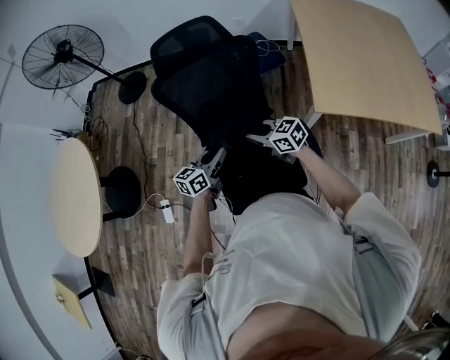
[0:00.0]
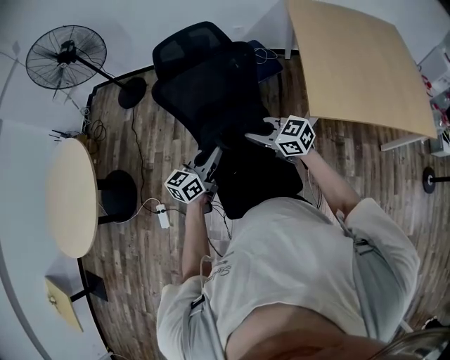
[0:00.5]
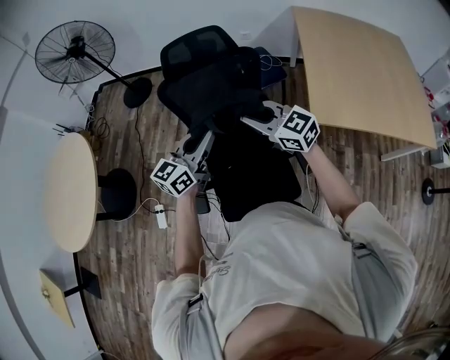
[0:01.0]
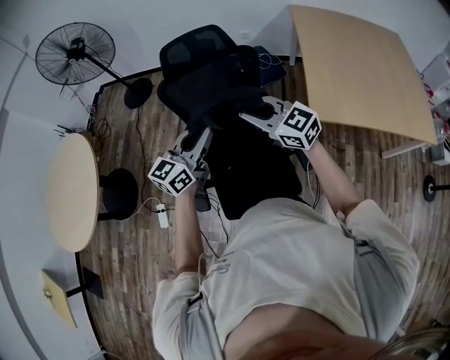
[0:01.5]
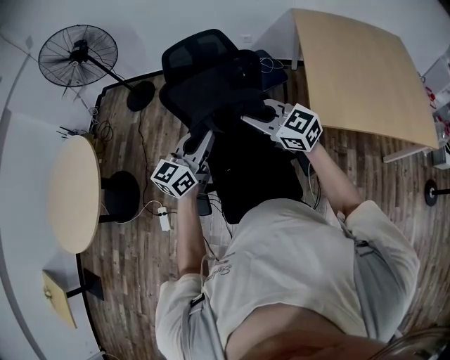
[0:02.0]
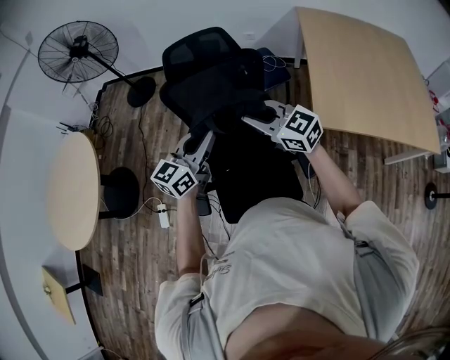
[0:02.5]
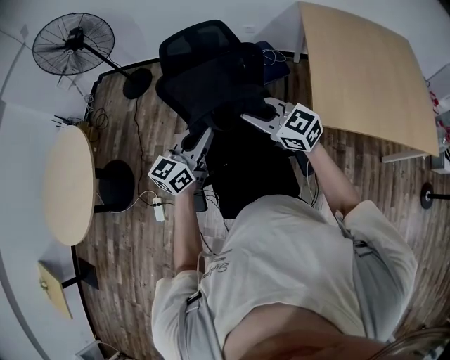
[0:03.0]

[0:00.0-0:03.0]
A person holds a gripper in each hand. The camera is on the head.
0:00.0 to 0:01.5: The grippers both shift upward by about 20 cm. The left gripper swivels some 20 degrees, while the right gripper swivels approximately 30 degrees.
0:01.5 to 0:03.0: The grippers stay close to where they were, moving slightly.
